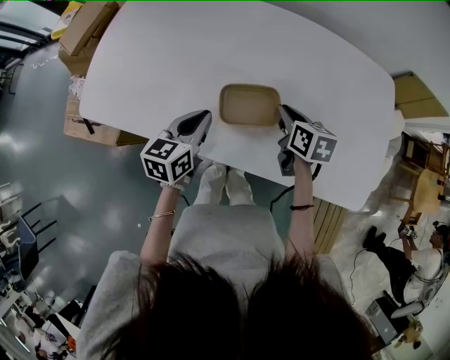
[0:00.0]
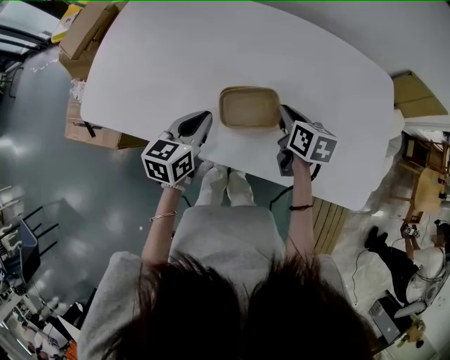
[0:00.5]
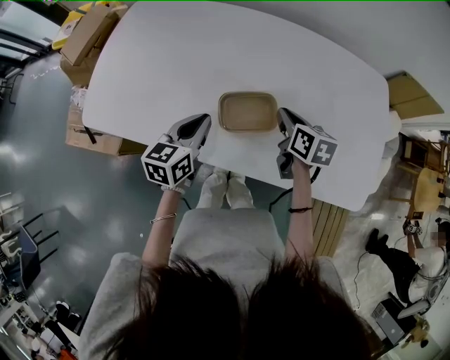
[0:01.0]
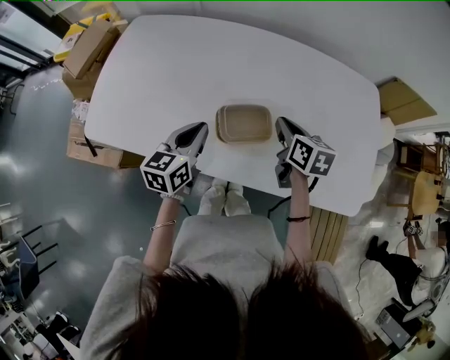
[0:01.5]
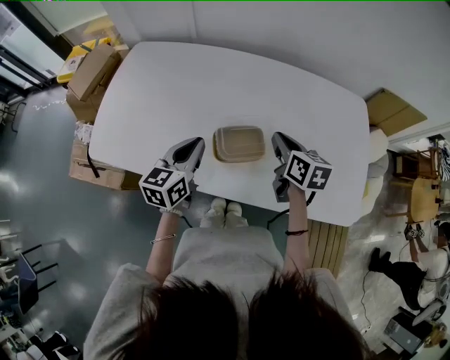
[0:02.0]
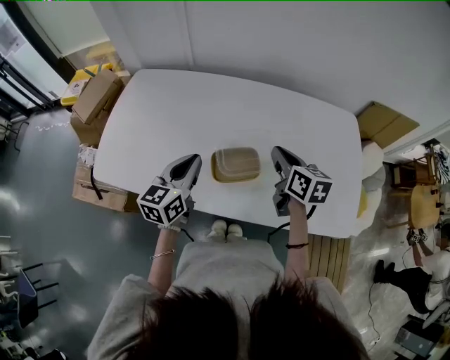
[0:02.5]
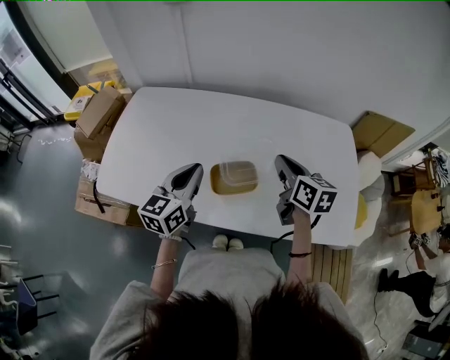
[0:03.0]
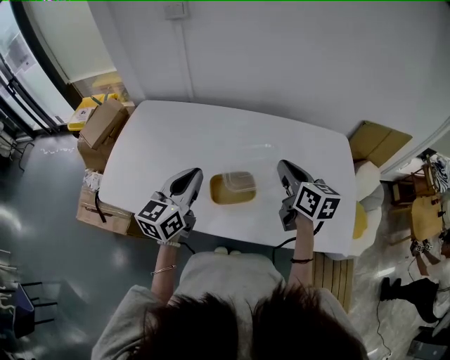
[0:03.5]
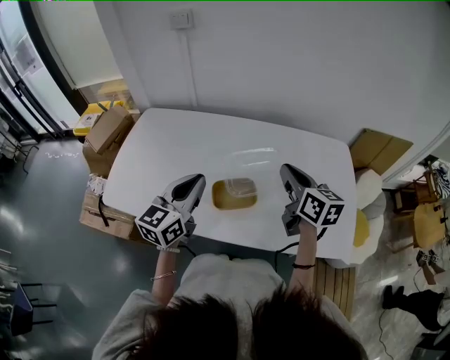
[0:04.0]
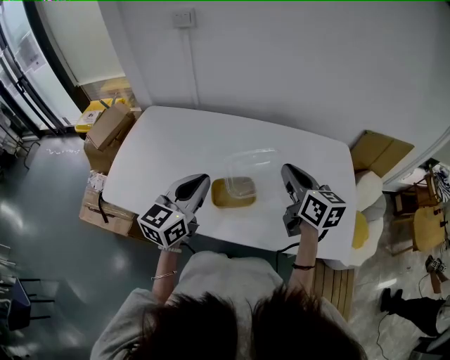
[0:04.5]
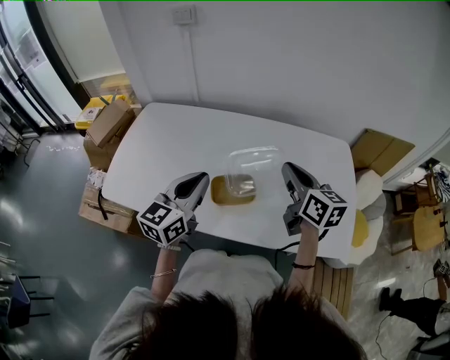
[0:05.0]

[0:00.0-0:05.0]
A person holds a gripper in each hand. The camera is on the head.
0:00.0 to 0:02.5: Both grippers move upward, roughly 10 cm.
0:02.5 to 0:05.0: Both grippers travel together upward, approximately 10 cm.

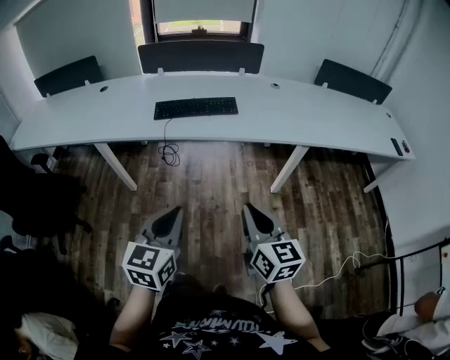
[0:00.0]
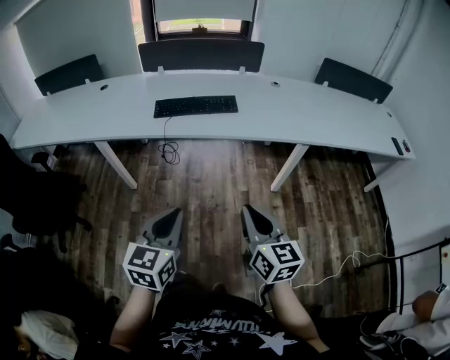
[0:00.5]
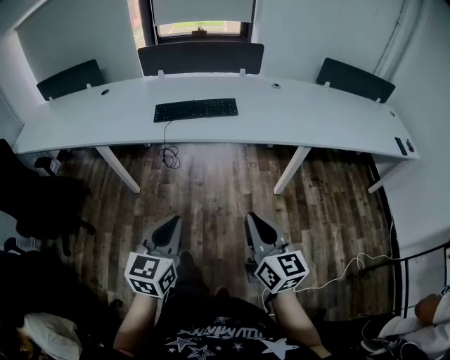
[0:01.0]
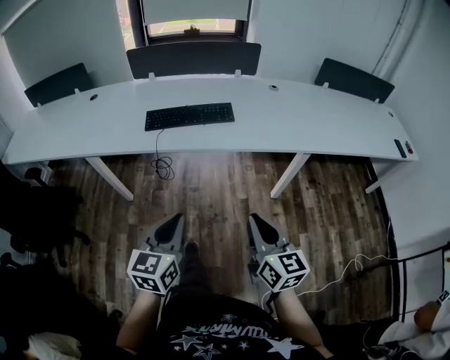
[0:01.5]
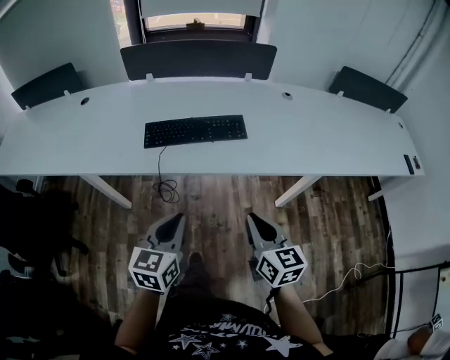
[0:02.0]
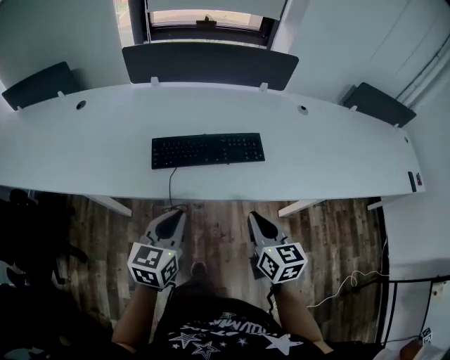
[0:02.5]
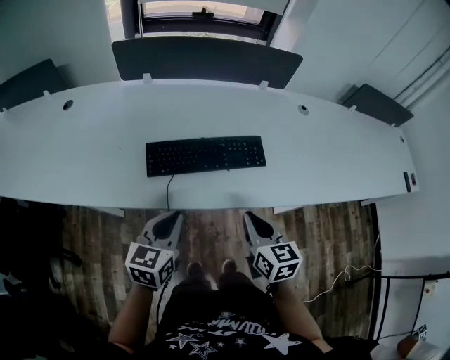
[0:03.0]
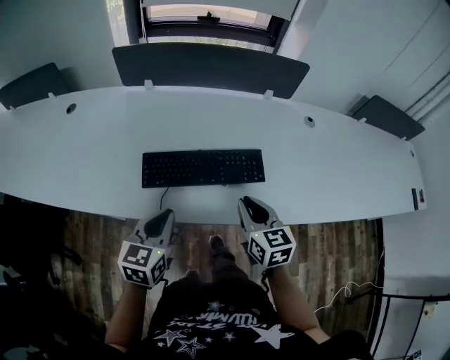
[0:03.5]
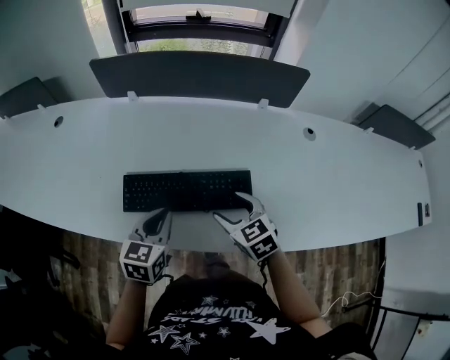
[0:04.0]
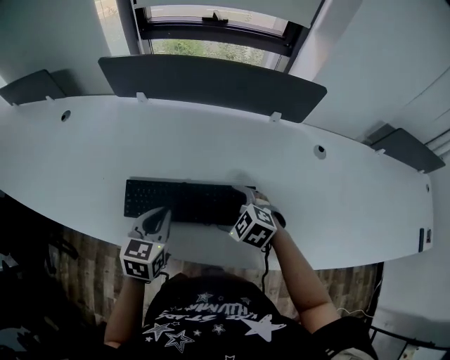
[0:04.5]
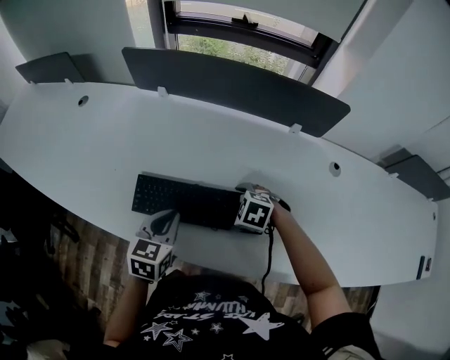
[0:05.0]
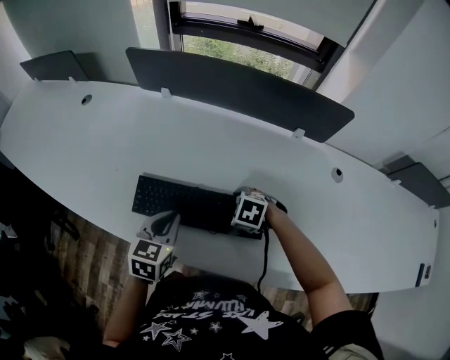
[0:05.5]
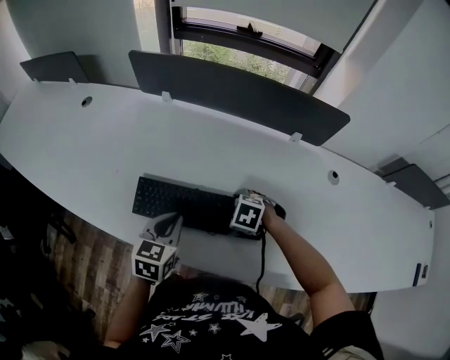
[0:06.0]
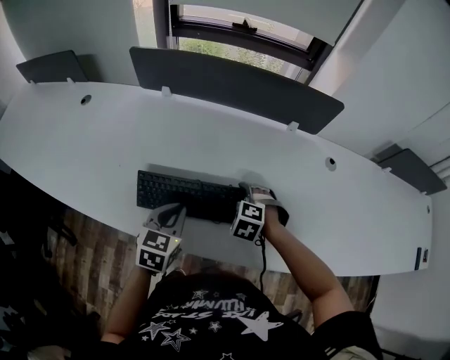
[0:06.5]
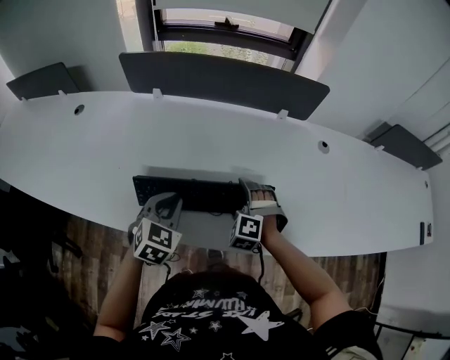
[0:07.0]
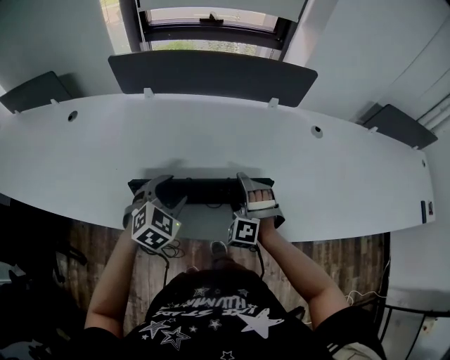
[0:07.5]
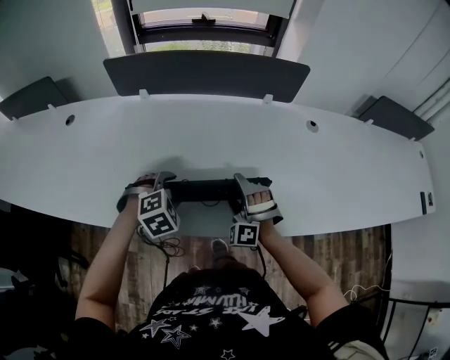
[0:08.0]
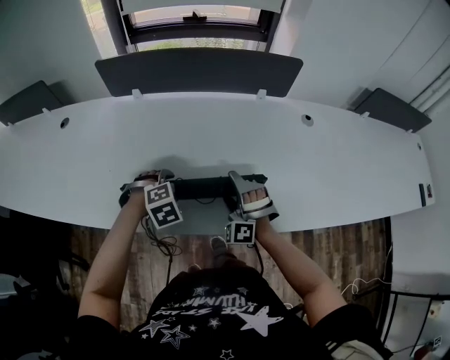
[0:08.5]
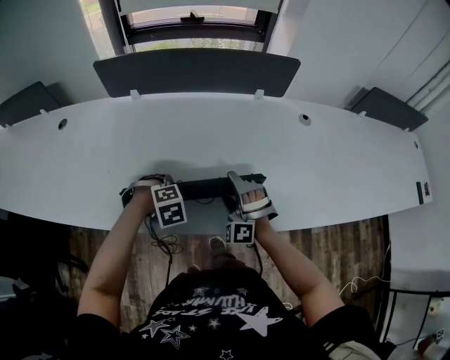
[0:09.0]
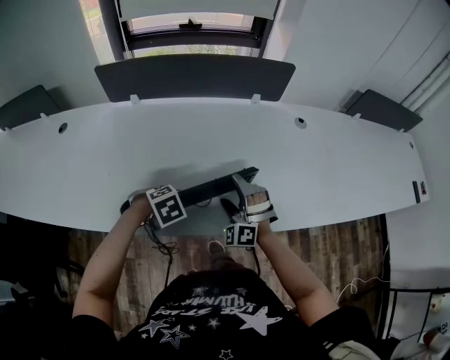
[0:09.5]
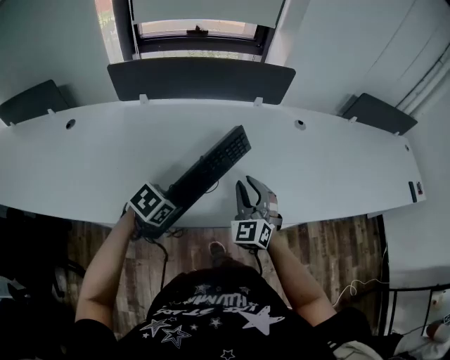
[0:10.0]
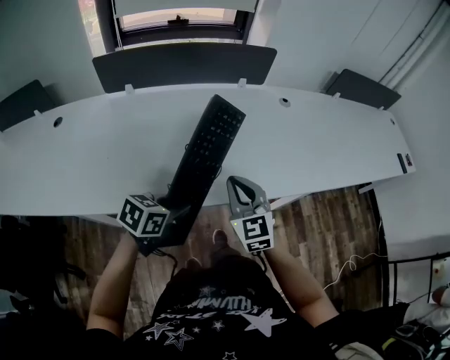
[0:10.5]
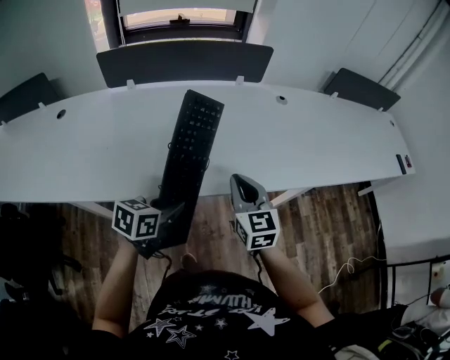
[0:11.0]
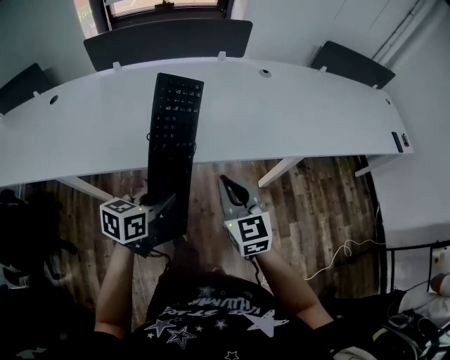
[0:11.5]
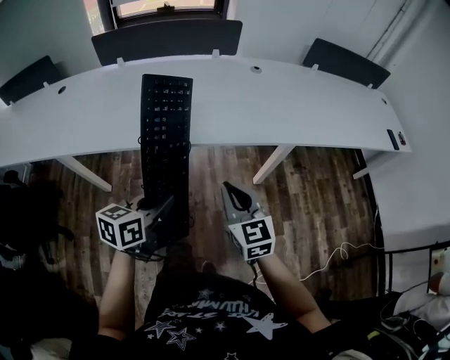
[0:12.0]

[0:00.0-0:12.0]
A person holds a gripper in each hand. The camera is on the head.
0:00.0 to 0:02.0: Both grippers move forward, roughly 20 cm.
0:02.0 to 0:04.0: The grippers both shift forward by approximately 35 cm. The right gripper swivels about 40 degrees, and opens its fingers.
0:04.0 to 0:06.0: The right gripper heads downward, covering approximately 10 cm, angles its fingers downward, by some 30 degrees, and opens.
0:06.0 to 0:08.0: The right gripper moves some 5 cm, and tips its fingers upward by roughly 40 degrees. The left gripper rolls clockwise, seen from behind, by about 70 degrees, and opens its fingers.
0:08.0 to 0:10.0: The left gripper changes place by some 10 cm, changes its angle by roughly 40 degrees, and closes its fingers. Meanwhile the right gripper is displaced upward by roughly 10 cm, rolls clockwise, seen from behind, by approximately 40 degrees, and closes.
0:10.0 to 0:12.0: The left gripper heads to the right and backward, covering some 30 cm, and points its fingers approximately 40 degrees further upward, while the right gripper shifts about 35 cm backward and to the right, and rotates roughly 40 degrees.

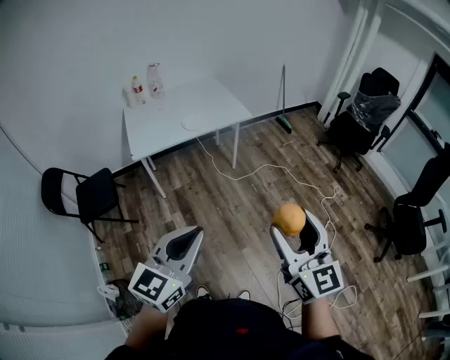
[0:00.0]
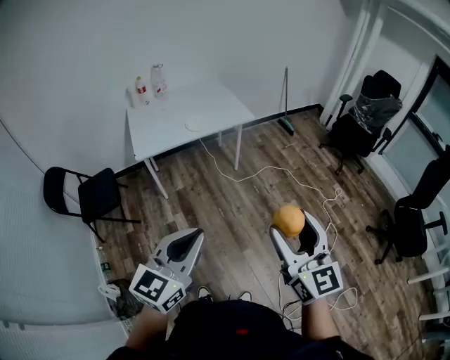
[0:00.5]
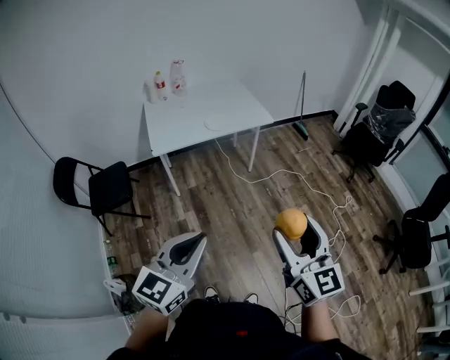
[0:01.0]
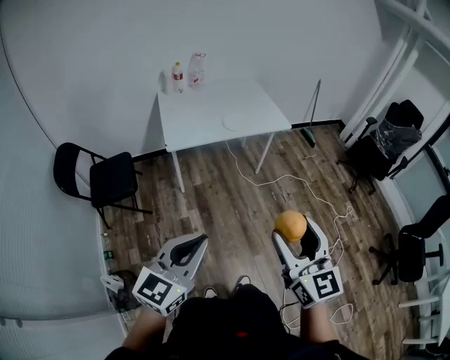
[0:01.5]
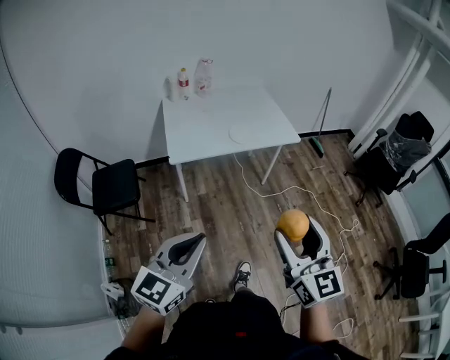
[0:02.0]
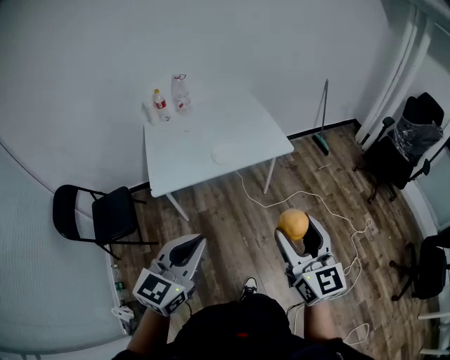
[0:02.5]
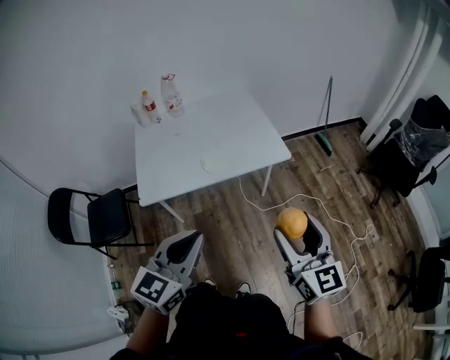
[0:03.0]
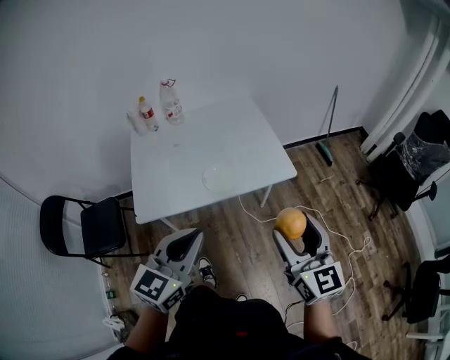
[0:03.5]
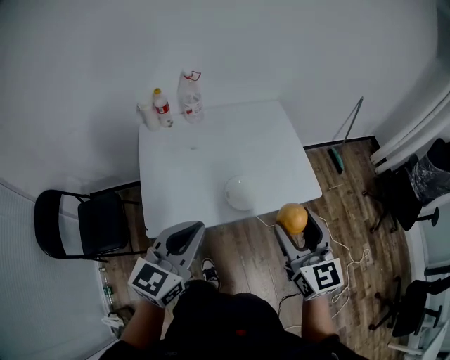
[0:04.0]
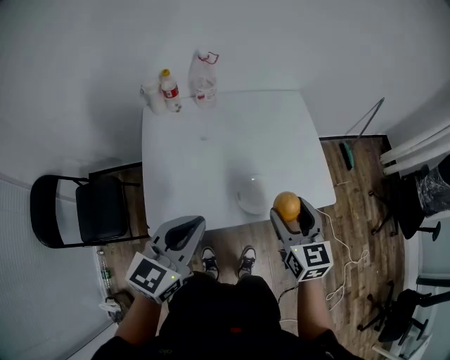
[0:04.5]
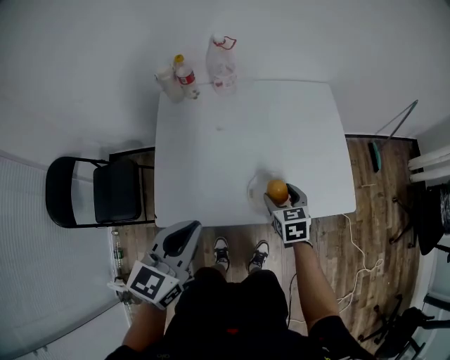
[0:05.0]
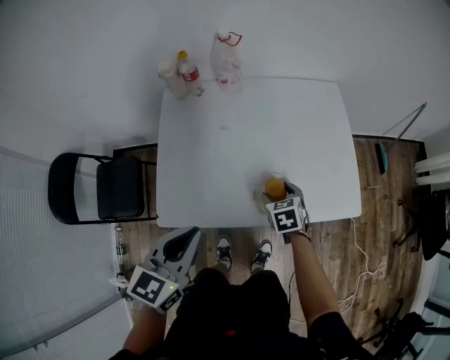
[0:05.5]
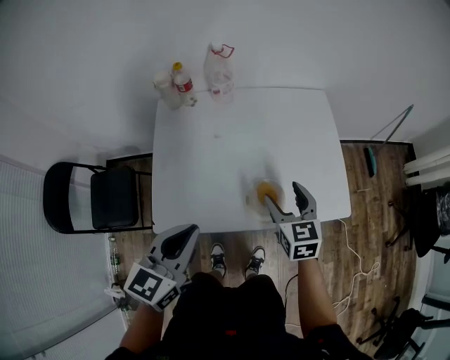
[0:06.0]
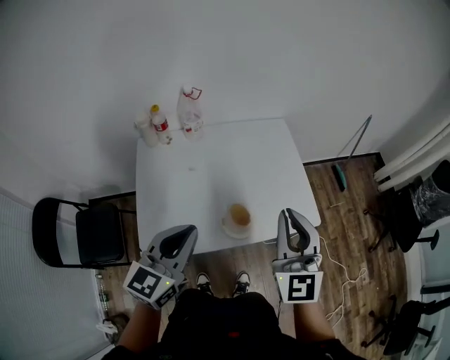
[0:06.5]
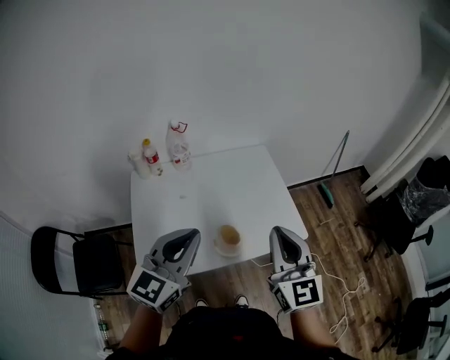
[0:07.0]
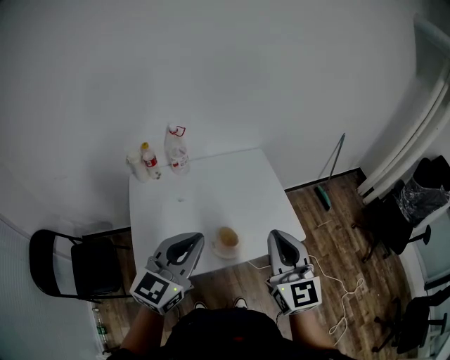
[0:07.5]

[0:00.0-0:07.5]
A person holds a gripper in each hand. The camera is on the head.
0:00.0 to 0:02.0: The grippers both shift to the left and forward by about 25 cm.
0:02.0 to 0:04.0: The pair of grippers is taken forward, some 50 cm.
0:04.0 to 0:05.5: The right gripper is displaced downward and forward by about 40 cm, and tilts its fingers approximately 50 degrees downward, while the left gripper is displaced downward and forward by some 10 cm, and turns by approximately 20 degrees.
0:05.5 to 0:07.5: The right gripper moves upward, some 40 cm, tips its fingers upward by some 60 degrees, and closes, while the left gripper is displaced upward and to the right by roughly 20 cm, and turns by roughly 30 degrees.

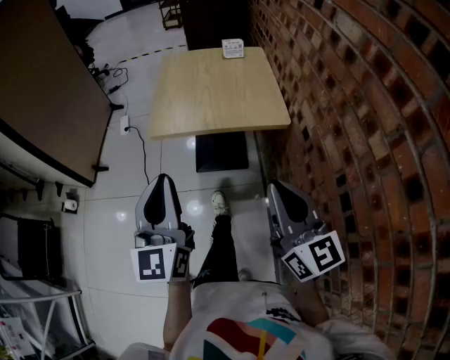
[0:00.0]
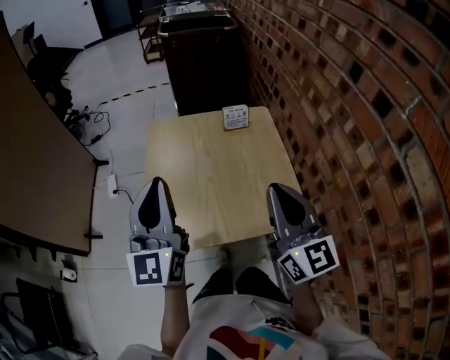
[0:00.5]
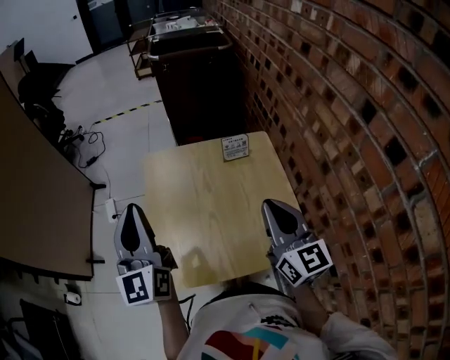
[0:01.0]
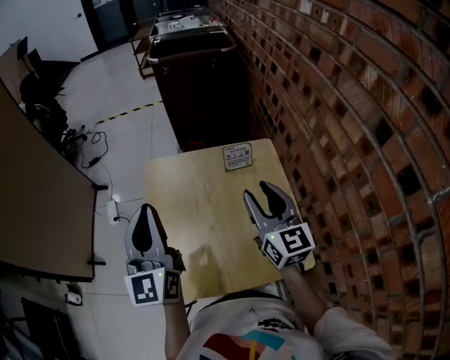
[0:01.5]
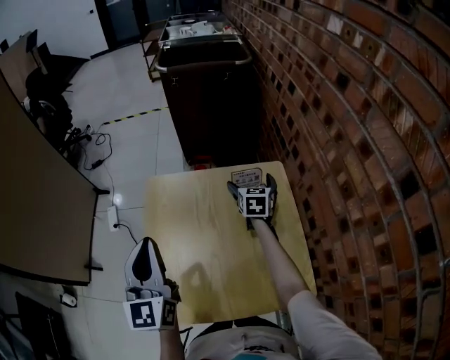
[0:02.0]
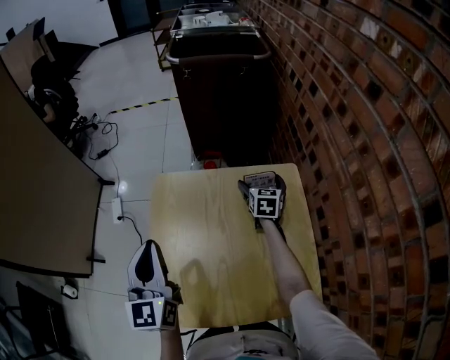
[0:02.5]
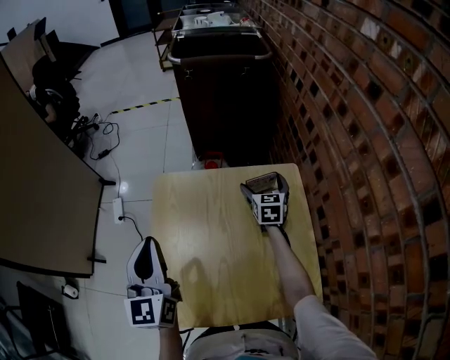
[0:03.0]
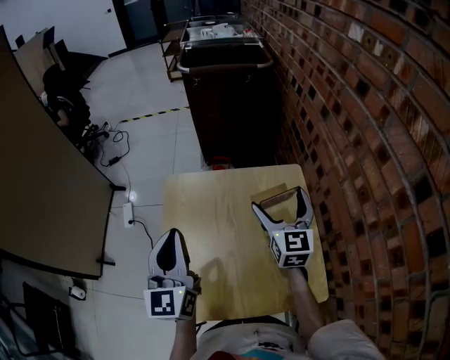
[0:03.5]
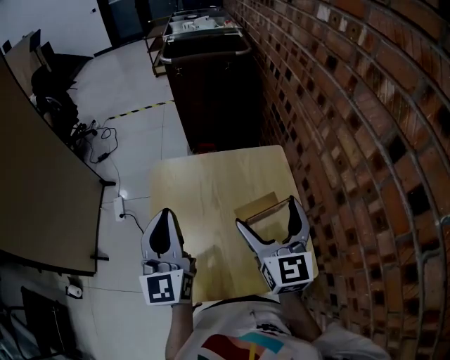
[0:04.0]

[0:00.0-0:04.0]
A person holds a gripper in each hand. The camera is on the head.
0:00.0 to 0:02.0: The pair of grippers is taken forward, some 70 cm. The right gripper tips its fingers downward by some 40 degrees, and opens its fingers.
0:02.0 to 0:04.0: The right gripper is displaced backward and upward by roughly 30 cm, and swivels some 30 degrees. Meanwhile the left gripper changes place by approximately 5 cm.
